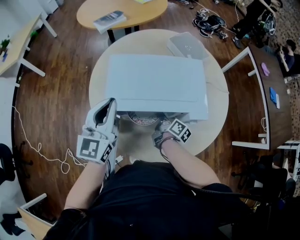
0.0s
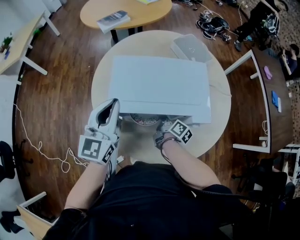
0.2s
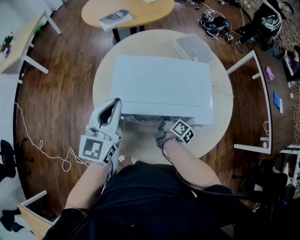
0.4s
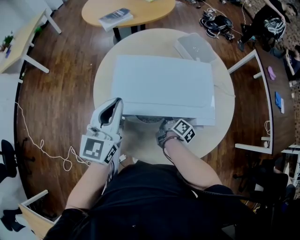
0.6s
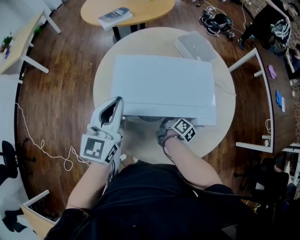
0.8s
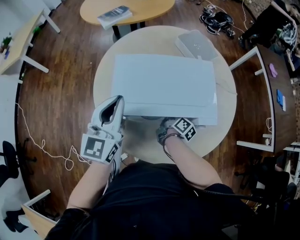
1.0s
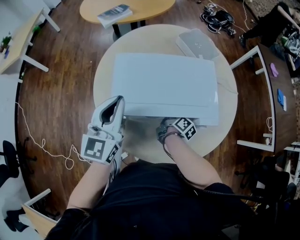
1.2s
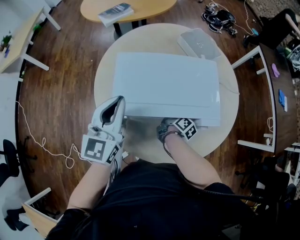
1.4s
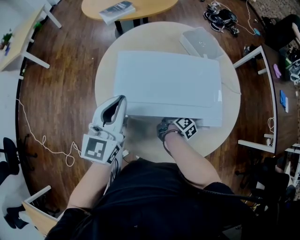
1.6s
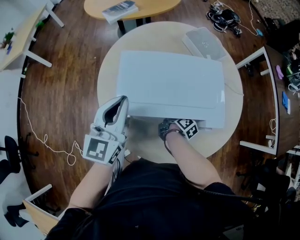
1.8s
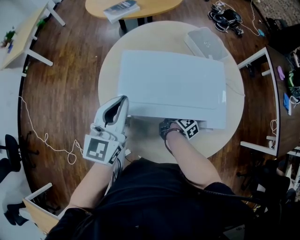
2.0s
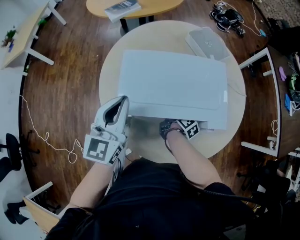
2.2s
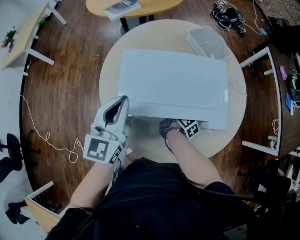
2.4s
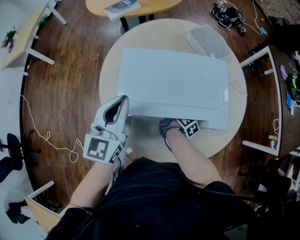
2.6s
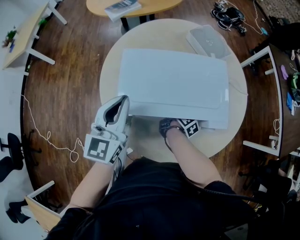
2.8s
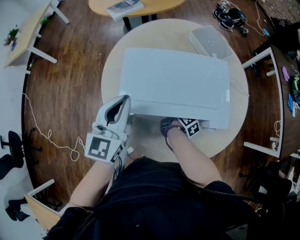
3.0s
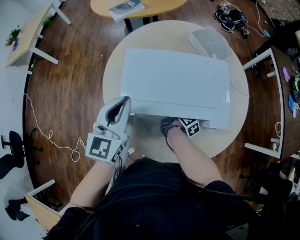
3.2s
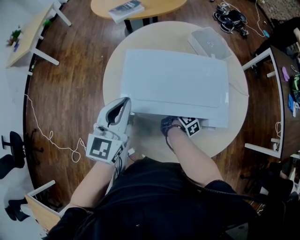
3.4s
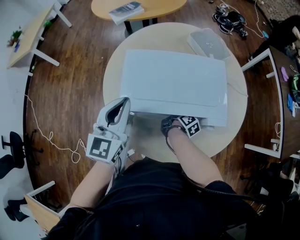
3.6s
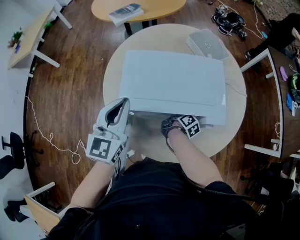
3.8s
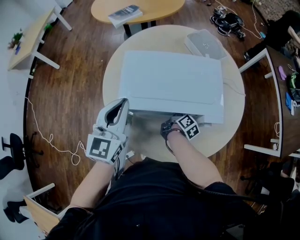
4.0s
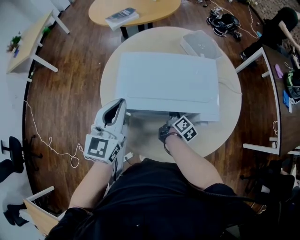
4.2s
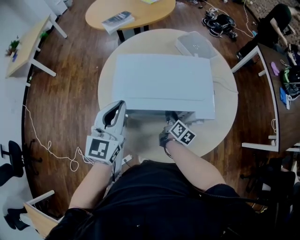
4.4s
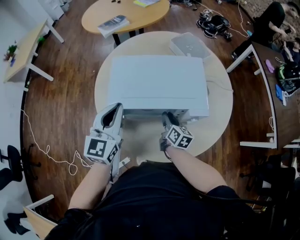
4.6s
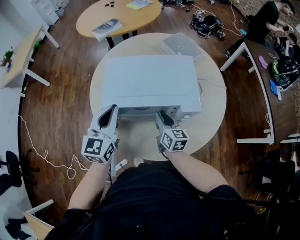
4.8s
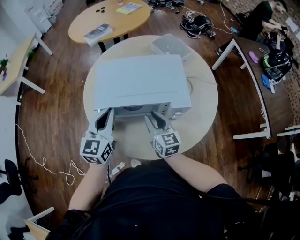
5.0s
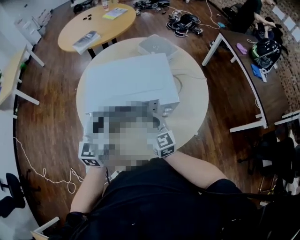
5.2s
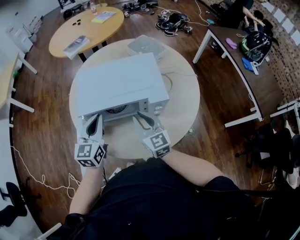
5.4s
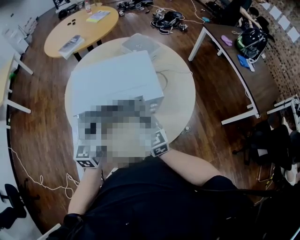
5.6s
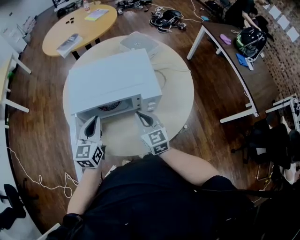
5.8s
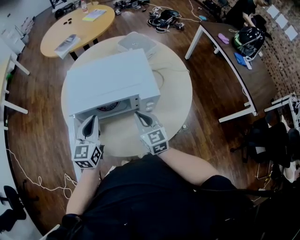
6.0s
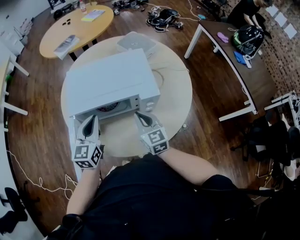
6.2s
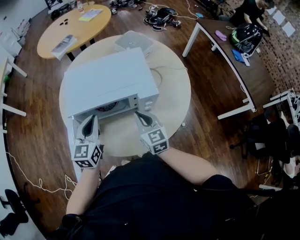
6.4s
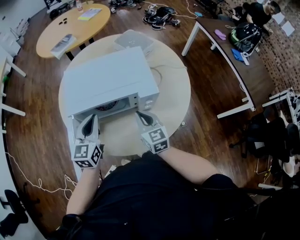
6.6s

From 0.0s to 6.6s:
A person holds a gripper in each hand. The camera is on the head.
From 0.0s to 1.6s: The right gripper moves roughly 5 cm.
From 1.6s to 3.2s: The grippers stay close to where they were, moving slightly.
From 3.2s to 5.0s: The left gripper shifts by about 5 cm. Meanwhile the right gripper is displaced upward and backward by about 20 cm, and twists some 70 degrees counterclockwise, seen from behind.
From 5.0s to 6.6s: The left gripper ends up roughly 5 cm from where it was, while the right gripper travels to the right by approximately 5 cm, and closes its fingers.

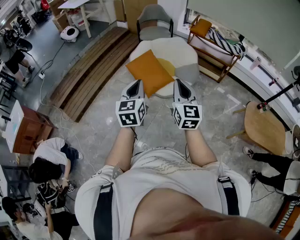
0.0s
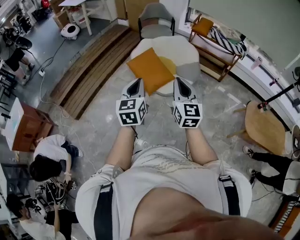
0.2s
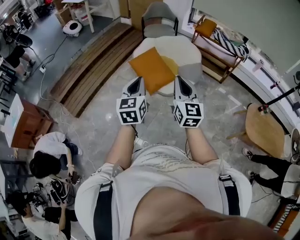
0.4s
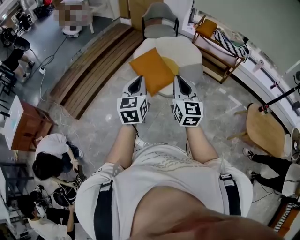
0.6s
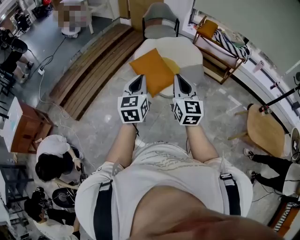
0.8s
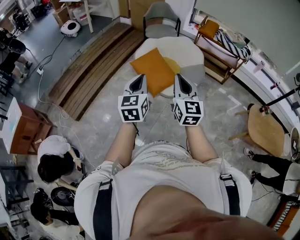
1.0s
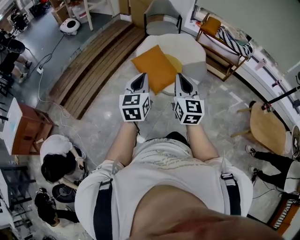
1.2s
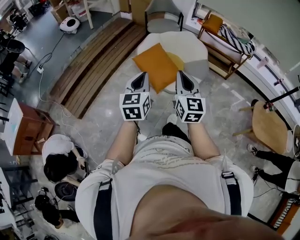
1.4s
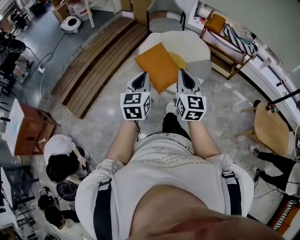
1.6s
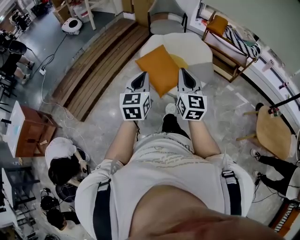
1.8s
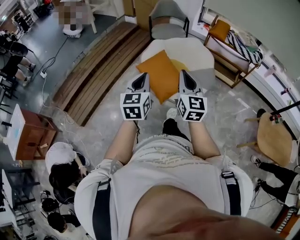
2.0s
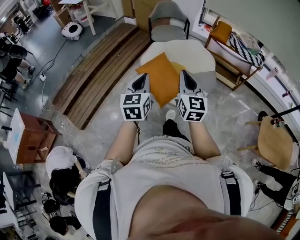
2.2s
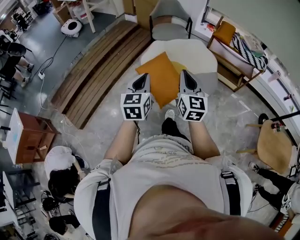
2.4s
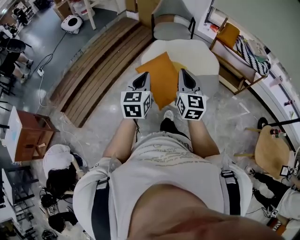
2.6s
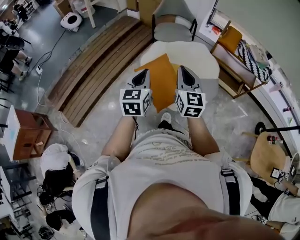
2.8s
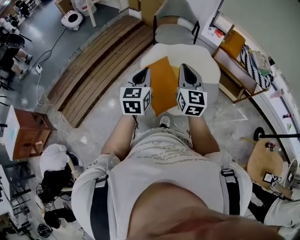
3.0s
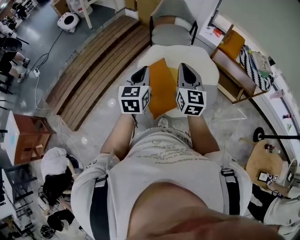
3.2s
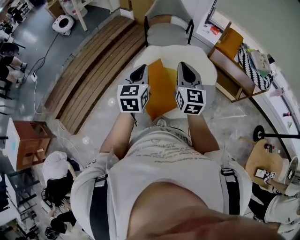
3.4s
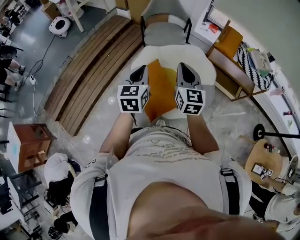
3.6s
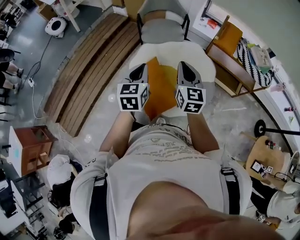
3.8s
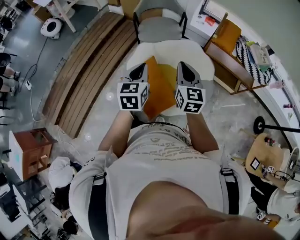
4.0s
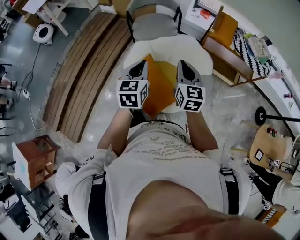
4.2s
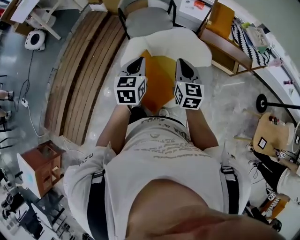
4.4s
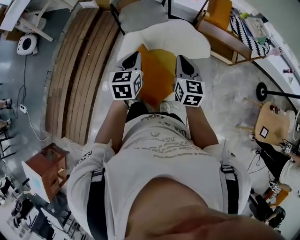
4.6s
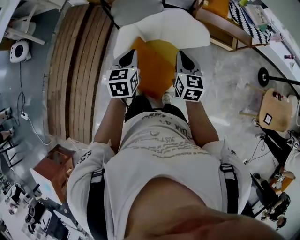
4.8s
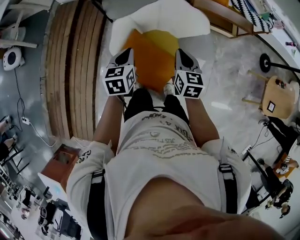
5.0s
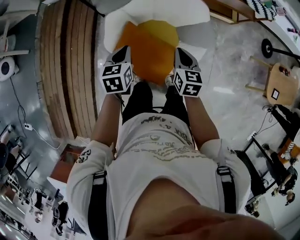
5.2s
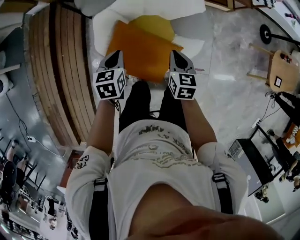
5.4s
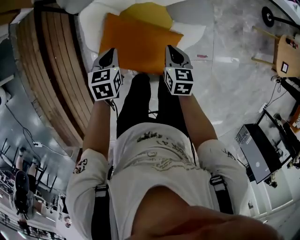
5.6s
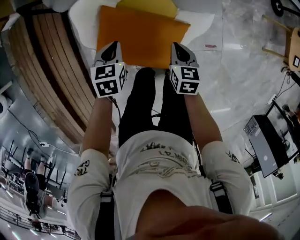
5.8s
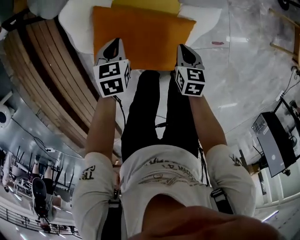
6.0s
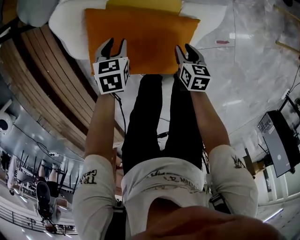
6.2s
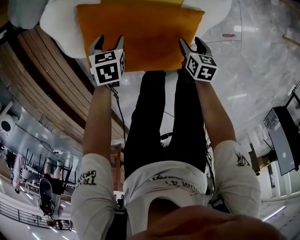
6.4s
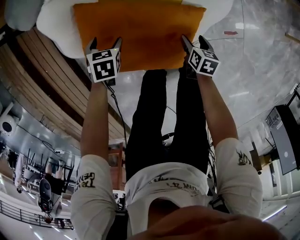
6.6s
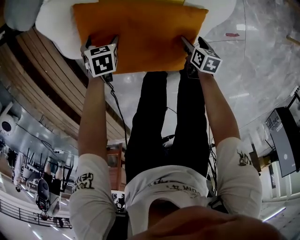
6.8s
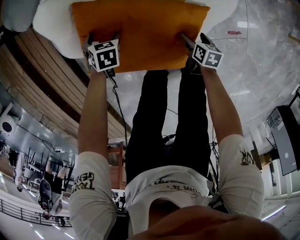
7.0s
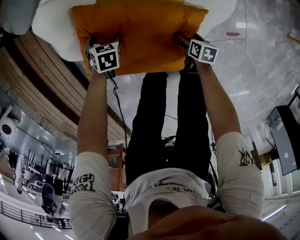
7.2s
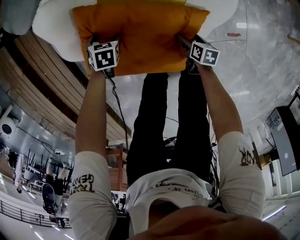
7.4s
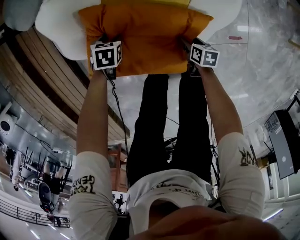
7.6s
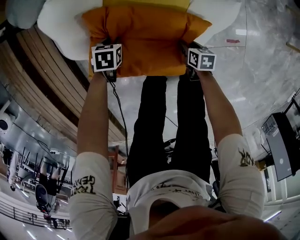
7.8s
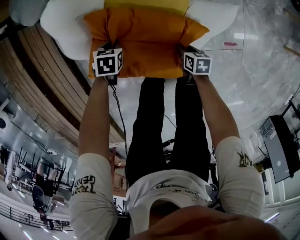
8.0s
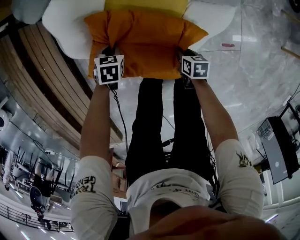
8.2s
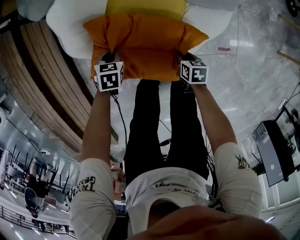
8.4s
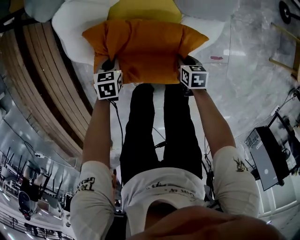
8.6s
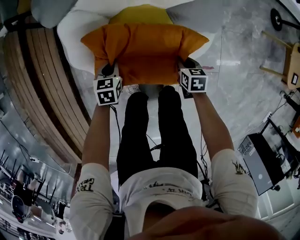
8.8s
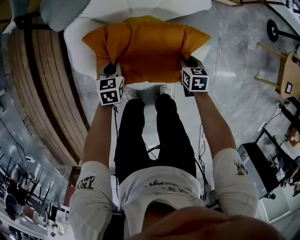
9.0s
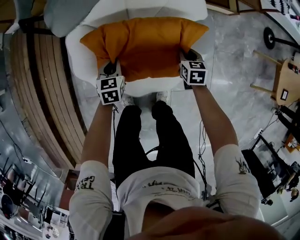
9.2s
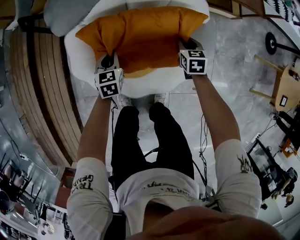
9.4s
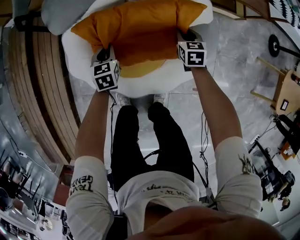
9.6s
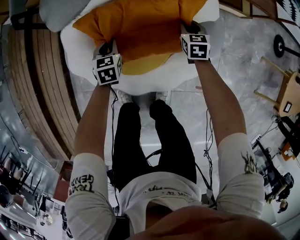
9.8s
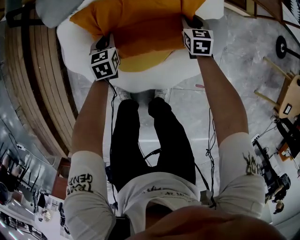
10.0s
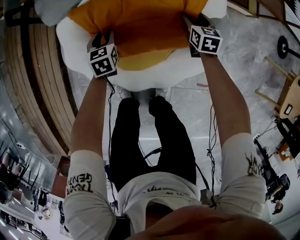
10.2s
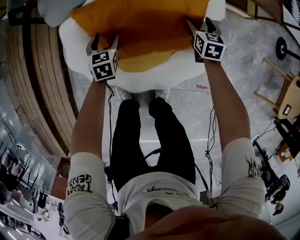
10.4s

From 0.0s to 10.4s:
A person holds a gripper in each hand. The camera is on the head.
From 0.0s to 1.4s: Both grippers travel together to the left and forward, roughly 10 cm.
From 1.4s to 3.0s: Both grippers travel together forward, about 35 cm.
From 3.0s to 4.4s: The right gripper goes approximately 20 cm forward and downward, and swivels about 20 degrees. The left gripper heads forward, covering approximately 25 cm.
From 4.4s to 6.0s: The grippers both shift downward by some 50 cm. The left gripper angles its fingers downward, by roughly 30 degrees. Meanwhile the right gripper points its fingers some 40 degrees further downward.
From 6.0s to 7.4s: Both grippers move downward, about 25 cm. The right gripper swivels about 30 degrees, and opens; the left gripper opens.
From 7.4s to 9.0s: The two grippers go about 20 cm upward. The right gripper rotates approximately 30 degrees, and closes. The left gripper rotates roughly 30 degrees, and closes up.
From 9.0s to 10.4s: The left gripper travels forward by roughly 15 cm, and opens, while the right gripper moves forward, some 20 cm, and opens up.

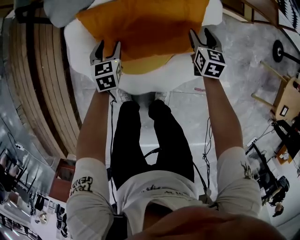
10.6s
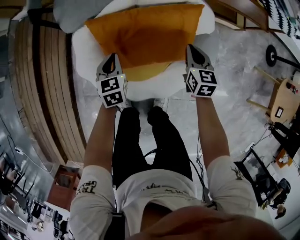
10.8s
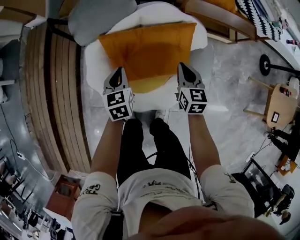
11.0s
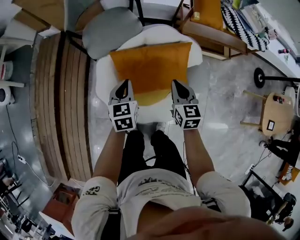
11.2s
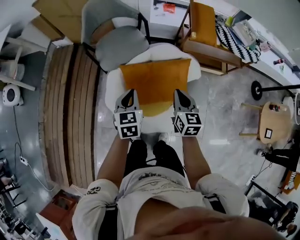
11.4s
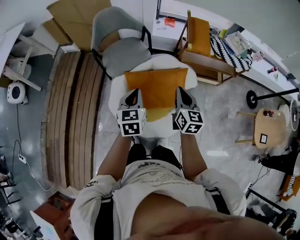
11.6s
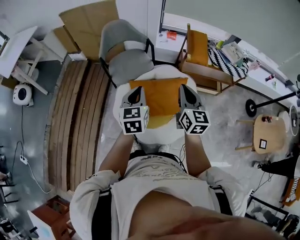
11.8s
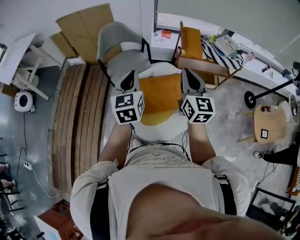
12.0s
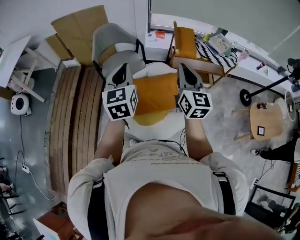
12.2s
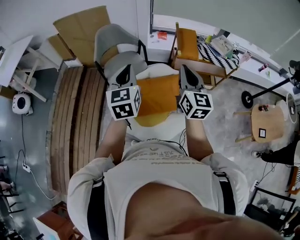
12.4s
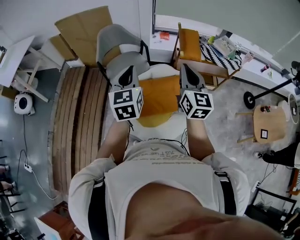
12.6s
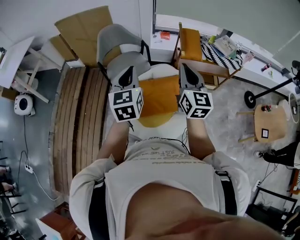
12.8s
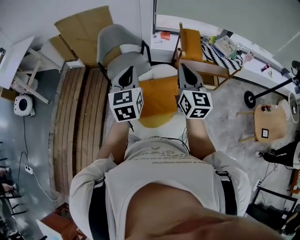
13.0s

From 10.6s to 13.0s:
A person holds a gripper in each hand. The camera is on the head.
From 10.6s to 11.8s: The grippers both shift upward by some 50 cm. The right gripper angles its fingers upward, by approximately 30 degrees, and closes up, while the left gripper changes its angle by about 20 degrees, and closes up.
From 11.8s to 13.0s: Both grippers move upward, approximately 10 cm.

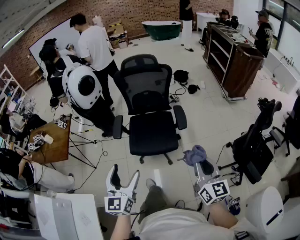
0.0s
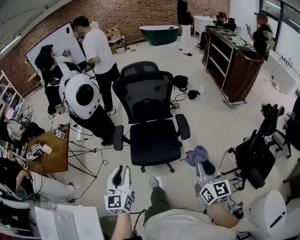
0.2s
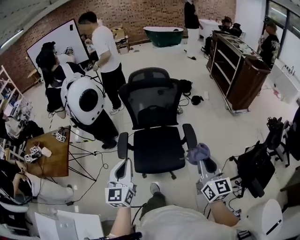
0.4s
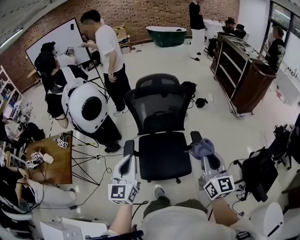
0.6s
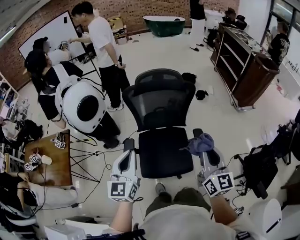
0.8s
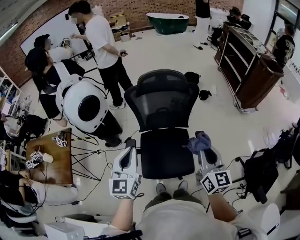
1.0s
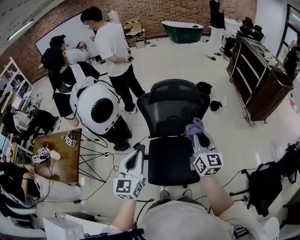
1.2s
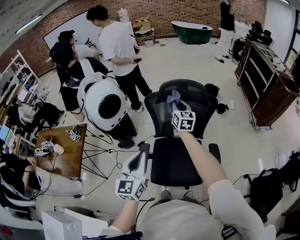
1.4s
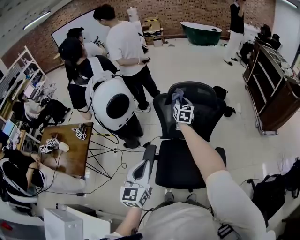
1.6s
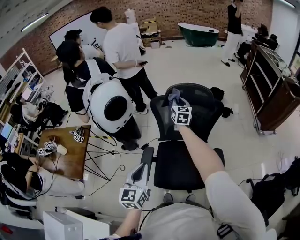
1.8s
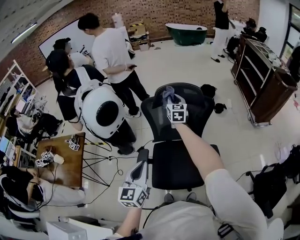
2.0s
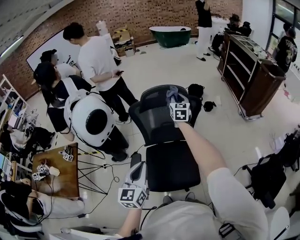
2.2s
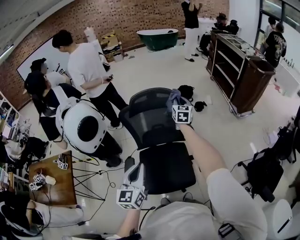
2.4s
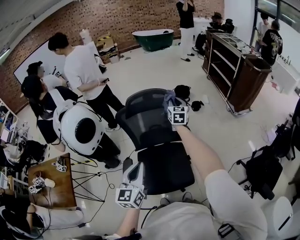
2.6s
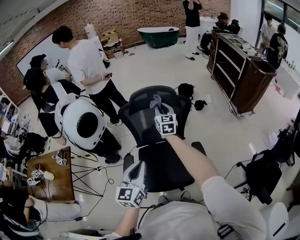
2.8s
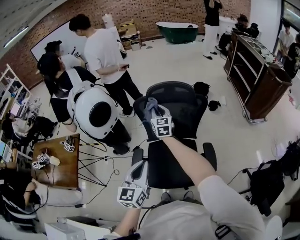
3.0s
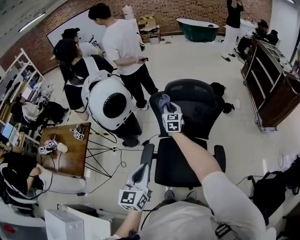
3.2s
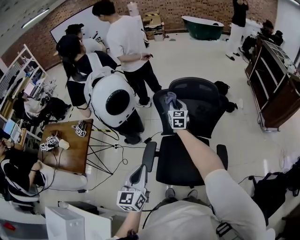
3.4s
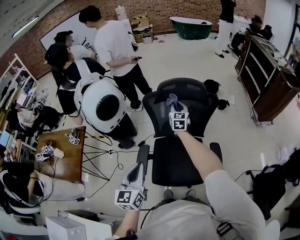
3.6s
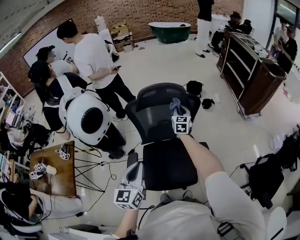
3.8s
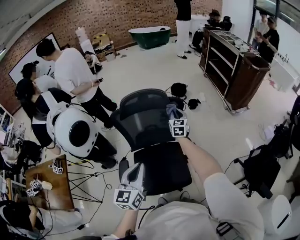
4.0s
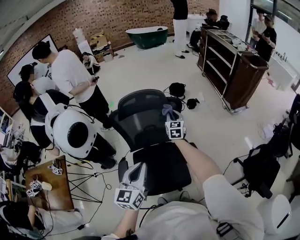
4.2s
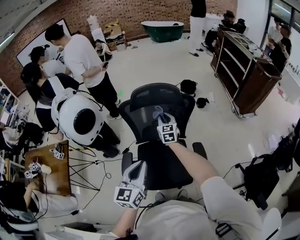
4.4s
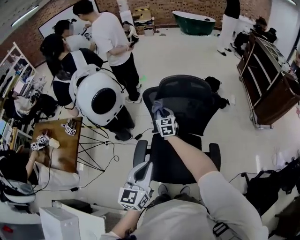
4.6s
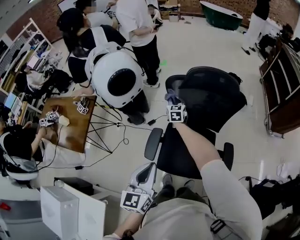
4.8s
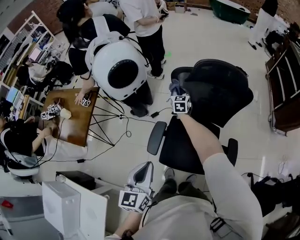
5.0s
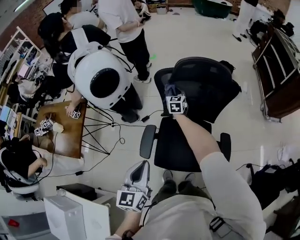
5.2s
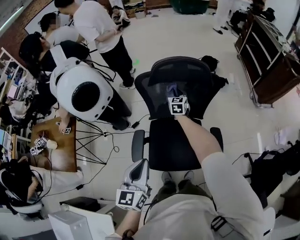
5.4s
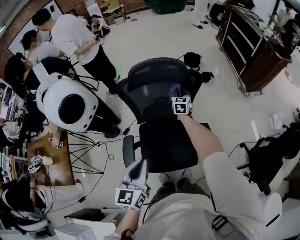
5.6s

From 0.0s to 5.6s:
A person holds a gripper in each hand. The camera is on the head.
From 0.0s to 1.4s: The right gripper travels forward by roughly 70 cm. The left gripper is displaced forward by some 40 cm, and closes its fingers.
From 1.4s to 2.8s: The right gripper moves left and right over about 20 cm, changing direction 2 times, while the left gripper shifts roughly 5 cm to the right.
From 2.8s to 4.2s: The right gripper moves to the right and downward, about 15 cm.
From 4.2s to 5.6s: The left gripper moves roughly 10 cm.
